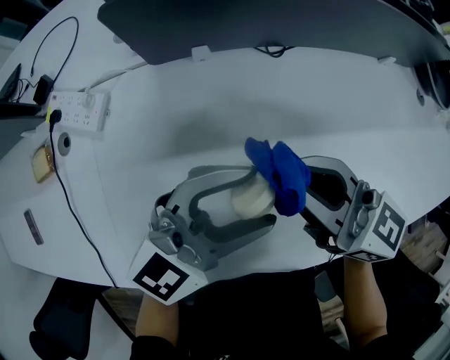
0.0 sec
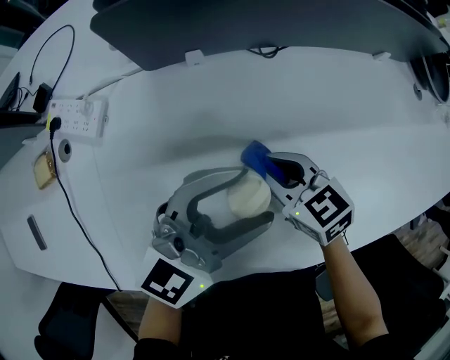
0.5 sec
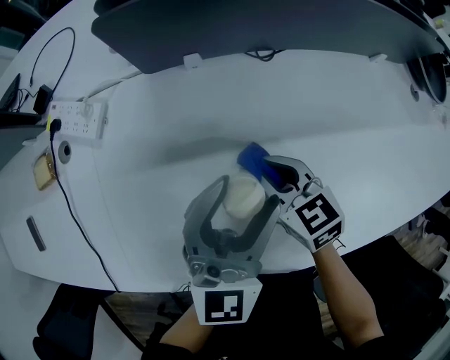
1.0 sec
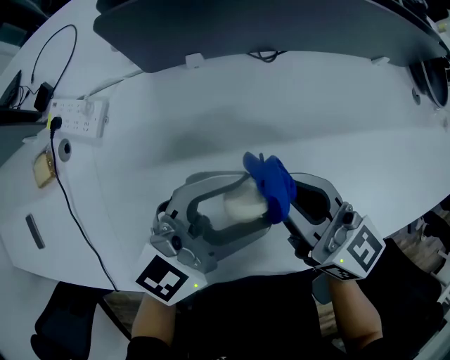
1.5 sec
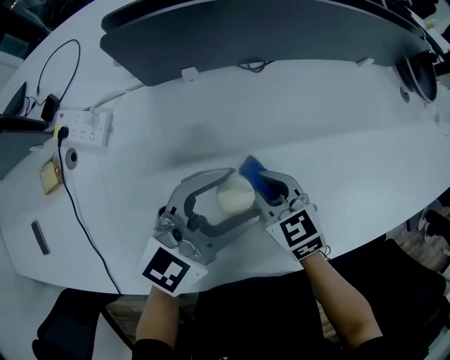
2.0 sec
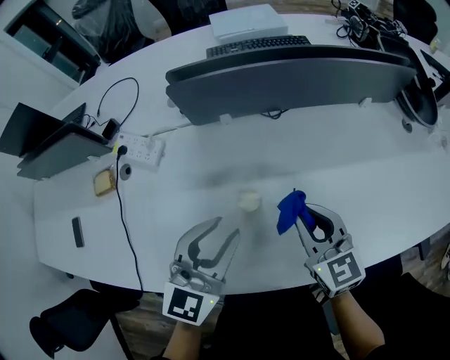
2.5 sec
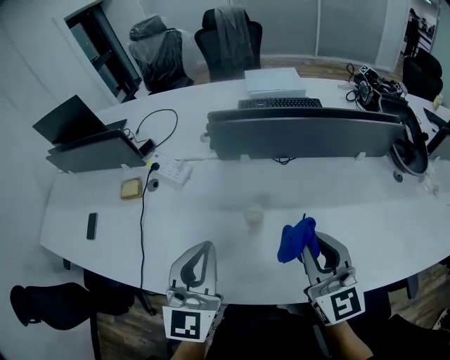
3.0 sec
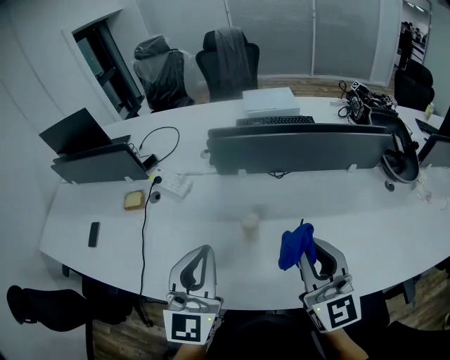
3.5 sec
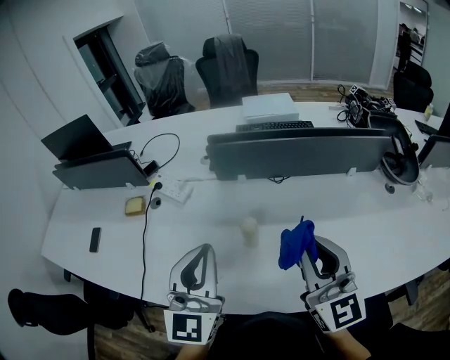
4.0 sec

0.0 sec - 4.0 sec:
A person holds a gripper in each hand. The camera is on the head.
0.0 sec - 2.0 sec: The right gripper goes up and down, about 15 cm each way, reversing 2 times, and angles its fingers downward, by approximately 40 degrees.
2.0 sec - 4.0 sec: The right gripper travels upward by some 35 cm, and tilts its fingers about 40 degrees upward, while the left gripper heads upward, backward and to the left, covering roughly 25 cm, swivels about 50 degrees, and closes its fingers.

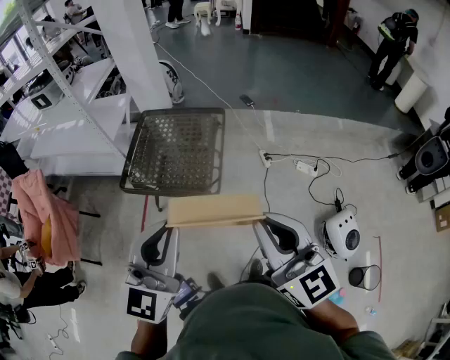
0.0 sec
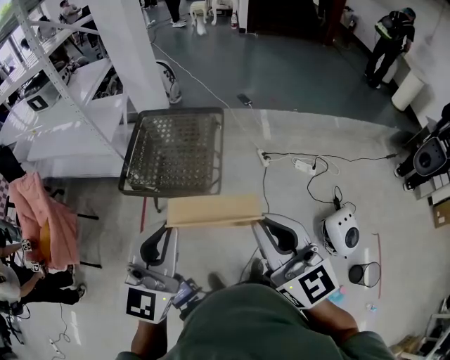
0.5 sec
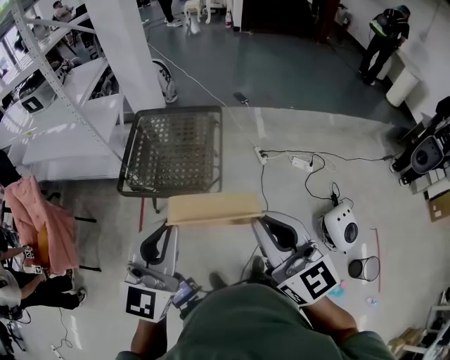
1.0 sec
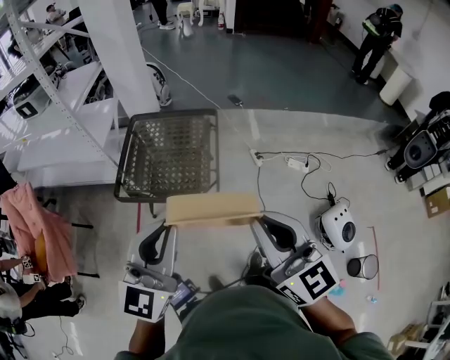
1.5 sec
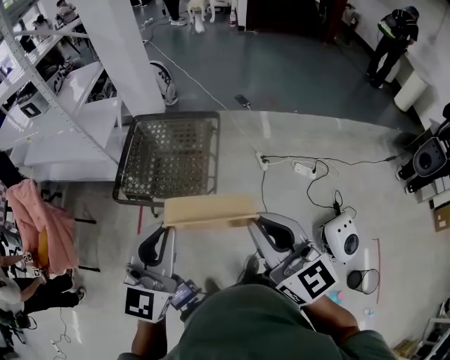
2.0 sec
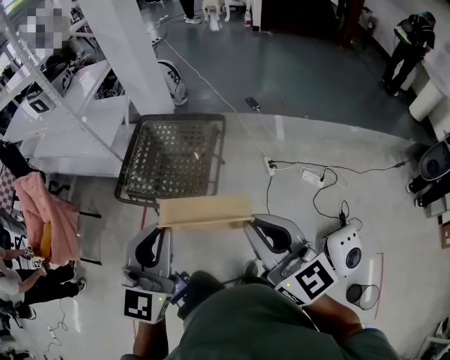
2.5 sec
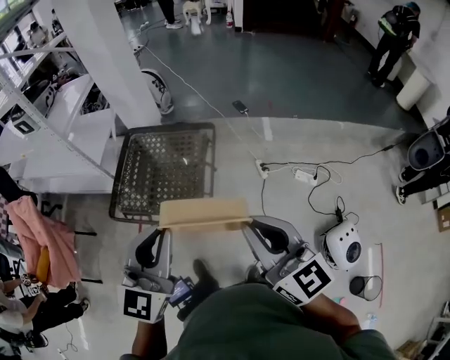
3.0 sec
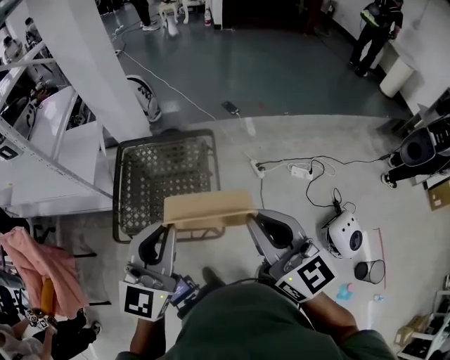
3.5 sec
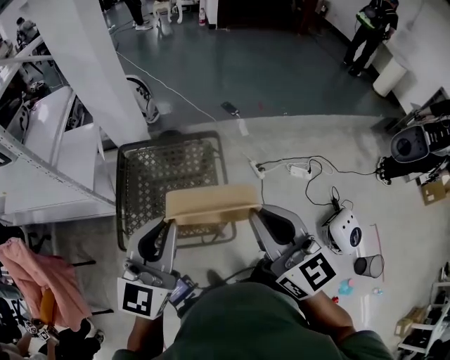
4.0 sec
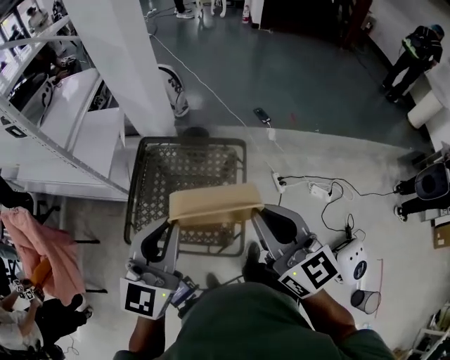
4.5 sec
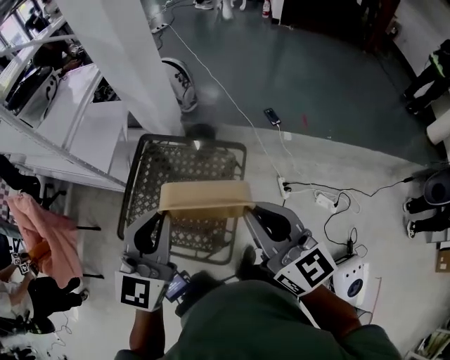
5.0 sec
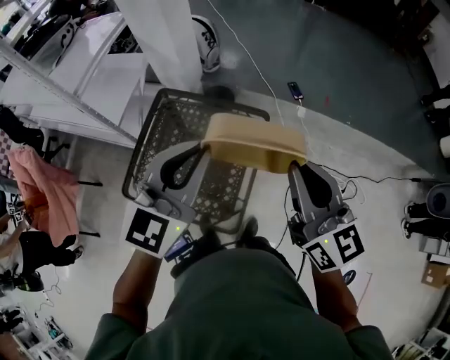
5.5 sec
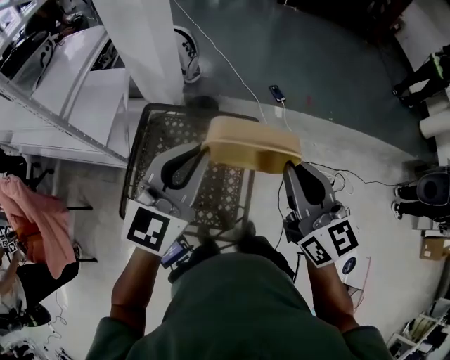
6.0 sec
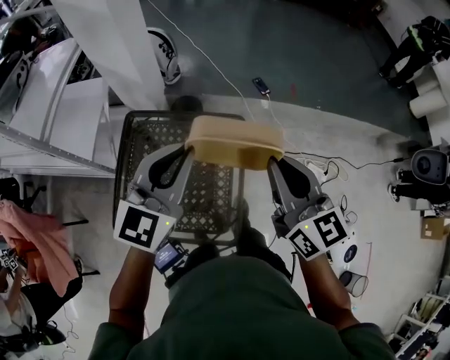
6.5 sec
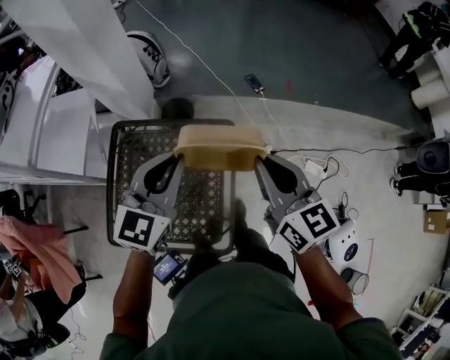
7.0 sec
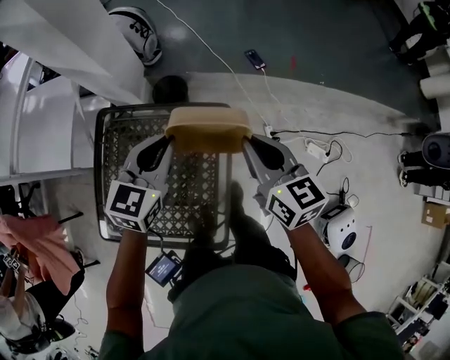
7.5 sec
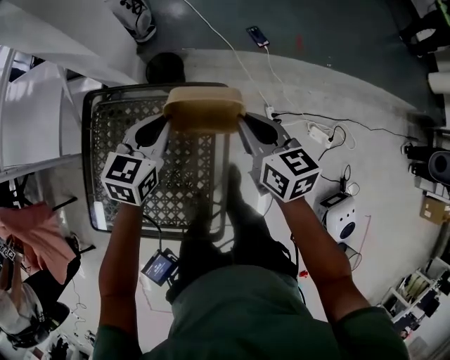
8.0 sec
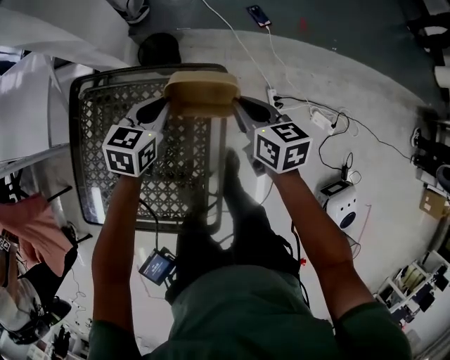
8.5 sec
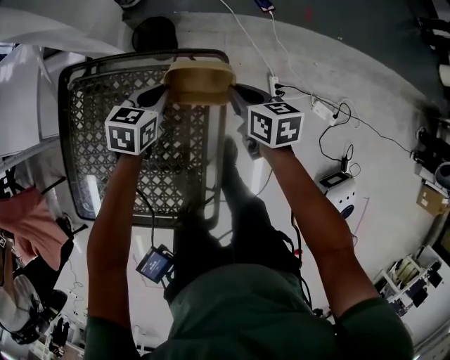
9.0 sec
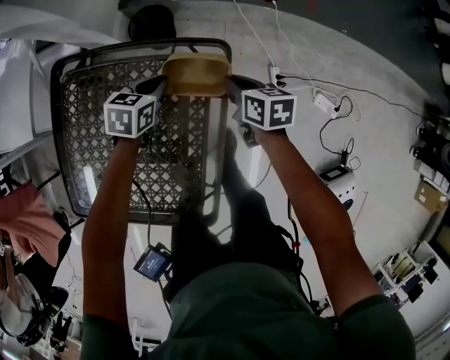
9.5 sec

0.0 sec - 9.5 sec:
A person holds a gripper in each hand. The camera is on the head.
0.0 sec - 2.0 sec: The two grippers go some 10 cm forward.
2.0 sec - 4.0 sec: Both grippers move forward and to the left, approximately 30 cm.
4.0 sec - 5.5 sec: Both grippers move forward and to the right, some 20 cm.
5.5 sec - 7.5 sec: Both grippers travel together forward and downward, approximately 30 cm. The left gripper changes its angle by roughly 20 degrees. The right gripper changes its angle by some 20 degrees.
7.5 sec - 9.5 sec: The two grippers go some 35 cm downward. The left gripper rotates roughly 30 degrees. Meanwhile the right gripper changes its angle by approximately 30 degrees.

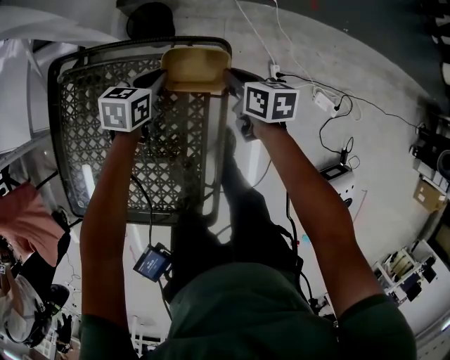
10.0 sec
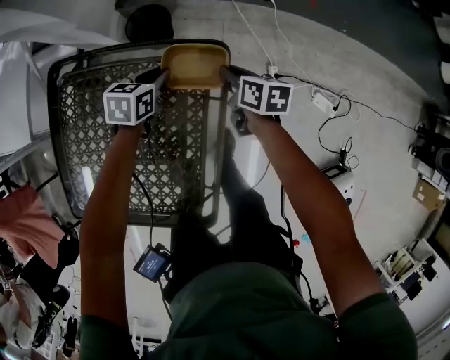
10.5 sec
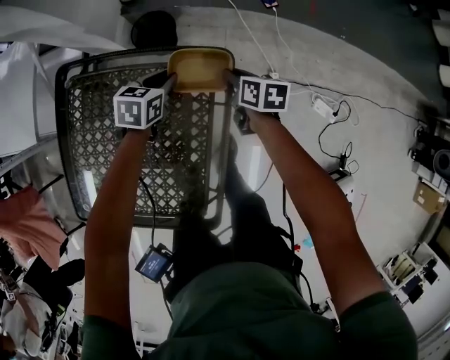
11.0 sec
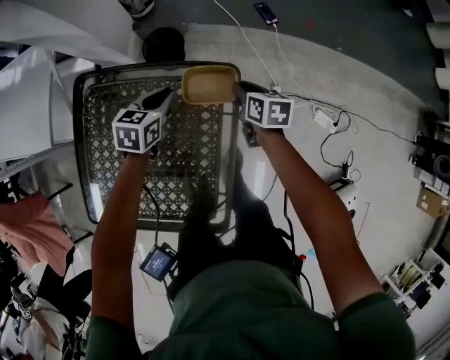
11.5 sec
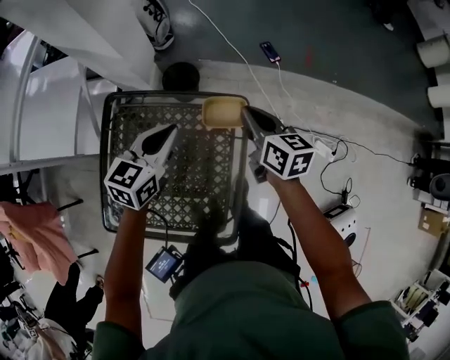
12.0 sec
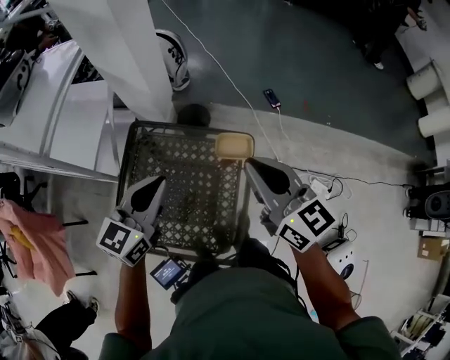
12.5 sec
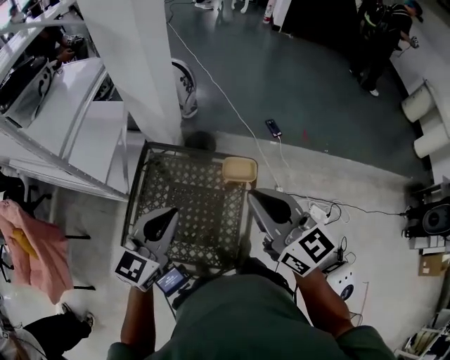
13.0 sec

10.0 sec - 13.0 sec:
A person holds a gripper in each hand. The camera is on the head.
10.0 sec - 11.5 sec: The left gripper is displaced upward by some 5 cm.
11.5 sec - 13.0 sec: Both grippers travel together upward and backward, about 50 cm. The right gripper angles its fingers upward, by about 40 degrees. Meanwhile the left gripper points its fingers roughly 30 degrees further upward.

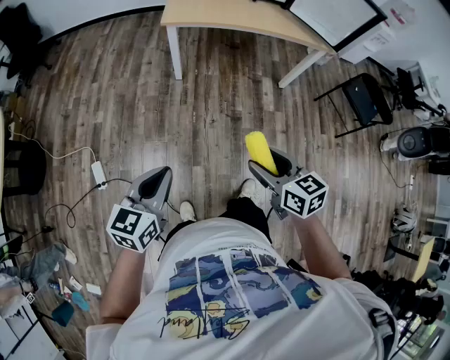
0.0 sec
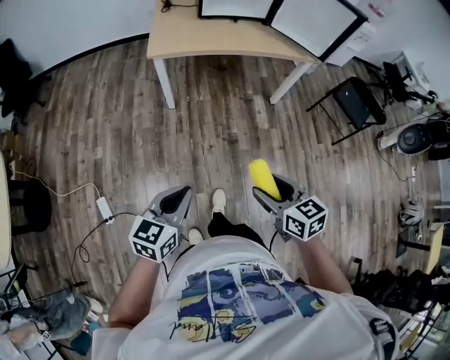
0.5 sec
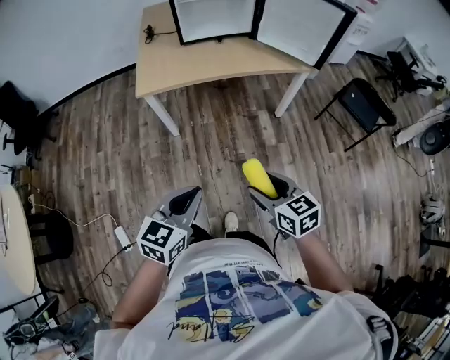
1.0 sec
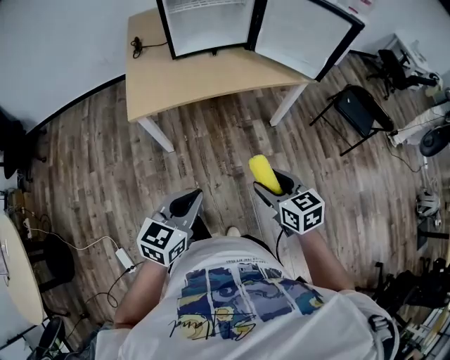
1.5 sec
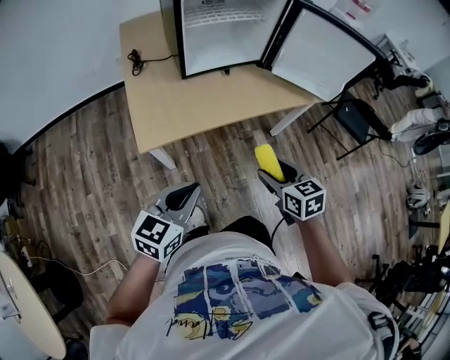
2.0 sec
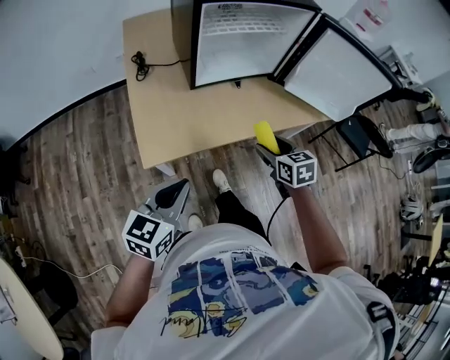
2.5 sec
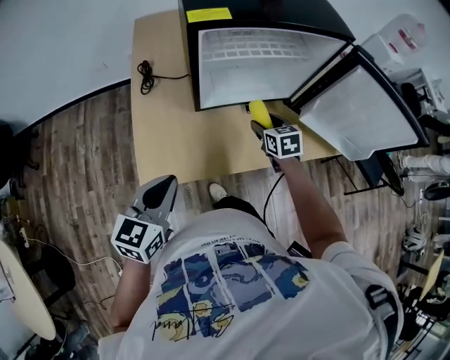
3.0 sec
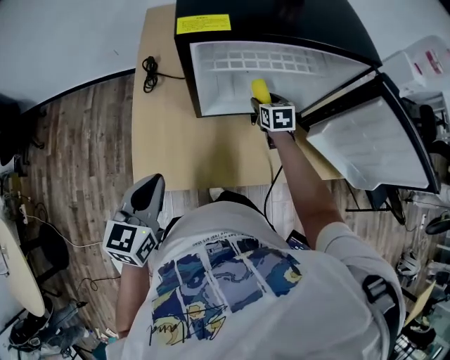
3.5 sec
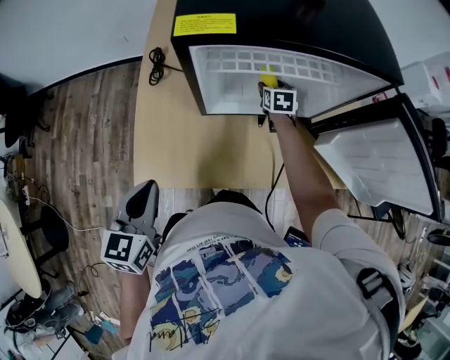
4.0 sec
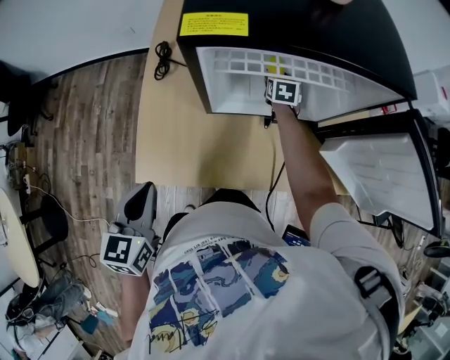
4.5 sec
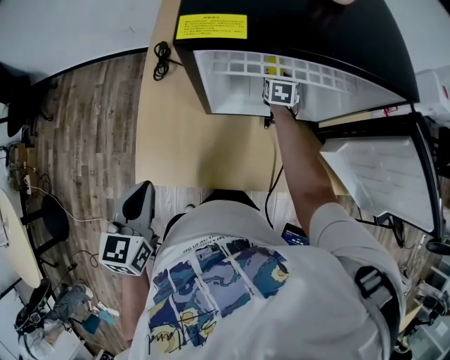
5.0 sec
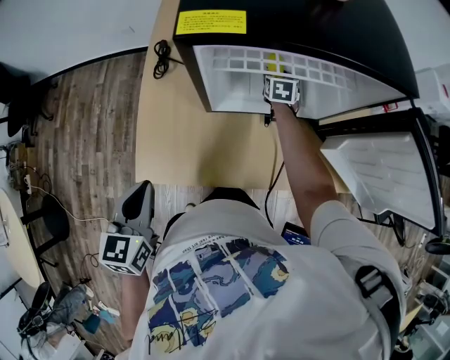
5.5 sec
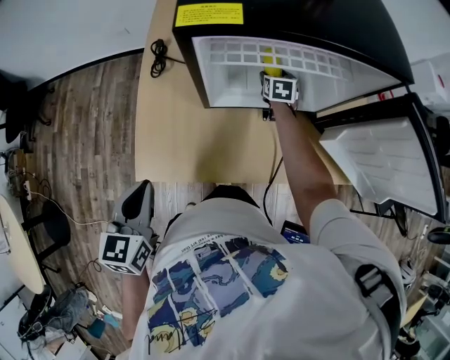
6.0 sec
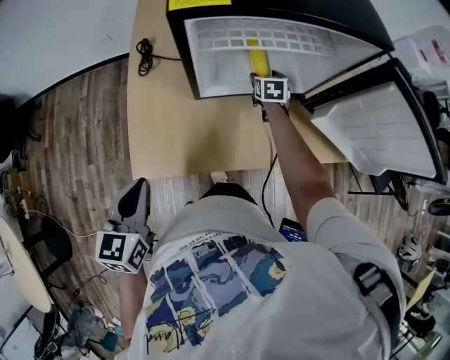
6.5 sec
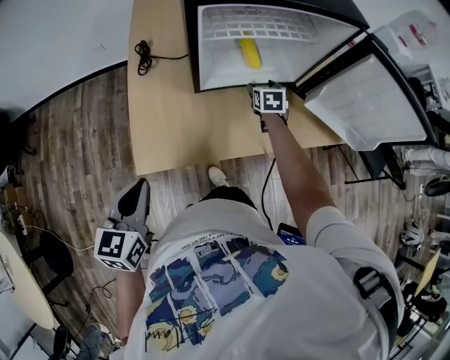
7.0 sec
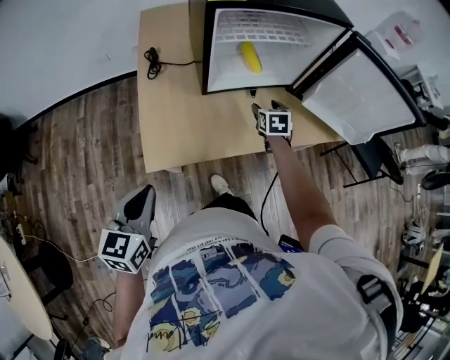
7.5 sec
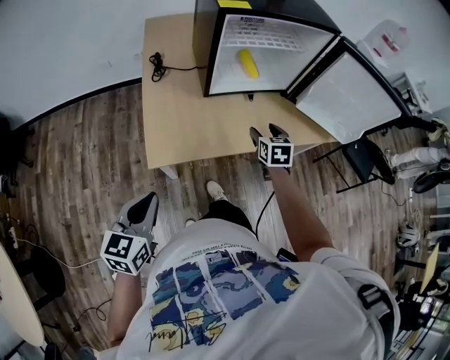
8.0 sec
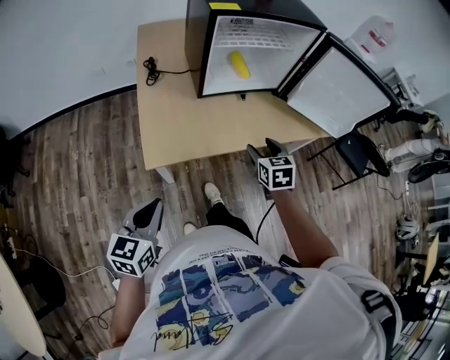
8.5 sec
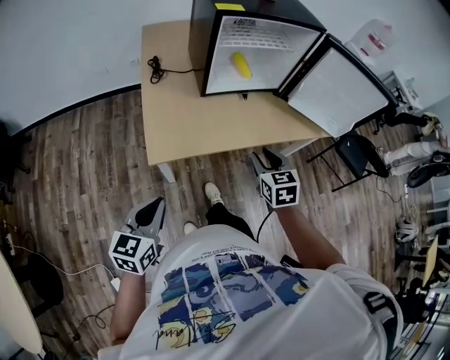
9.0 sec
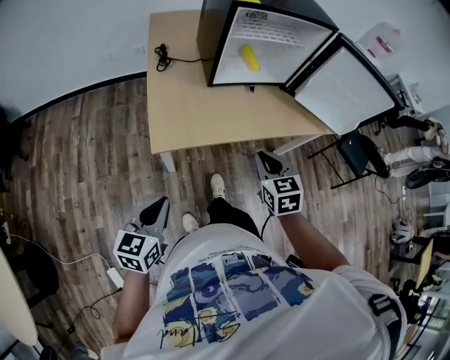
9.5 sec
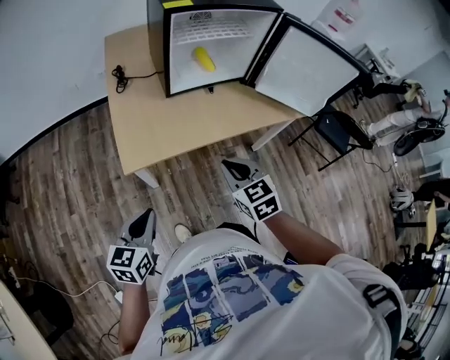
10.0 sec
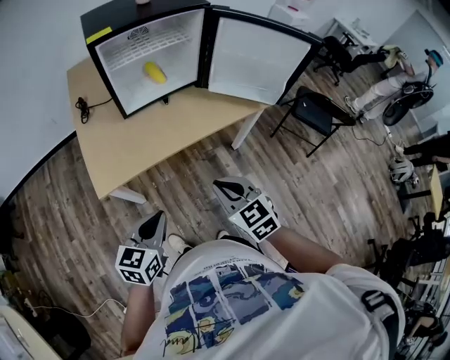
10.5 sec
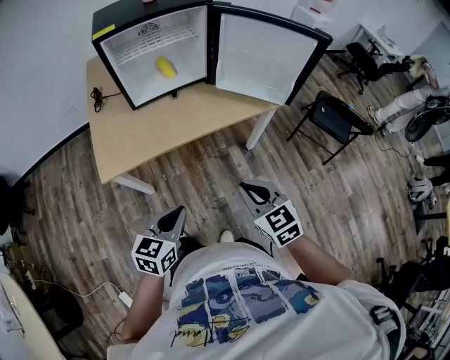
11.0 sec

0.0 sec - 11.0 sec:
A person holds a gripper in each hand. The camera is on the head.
0.0 sec - 2.0 sec: Both grippers are carried roughly 50 cm. The right gripper rotates approximately 20 degrees; the left gripper changes its angle by approximately 30 degrees.
2.0 sec - 3.5 sec: The left gripper moves forward, roughly 25 cm, and turns by roughly 30 degrees. The right gripper shifts some 50 cm forward.
3.5 sec - 5.5 sec: The right gripper is displaced forward by about 10 cm.
5.5 sec - 7.5 sec: The right gripper heads backward, covering some 25 cm. The left gripper heads backward and to the left, covering approximately 15 cm.
7.5 sec - 9.0 sec: The right gripper shifts about 25 cm backward, and closes its fingers. The left gripper is displaced backward by approximately 10 cm.
9.0 sec - 11.0 sec: The right gripper travels to the right and backward by about 25 cm, and closes. Meanwhile the left gripper moves to the right, approximately 30 cm.
